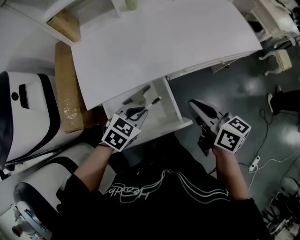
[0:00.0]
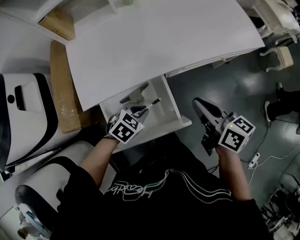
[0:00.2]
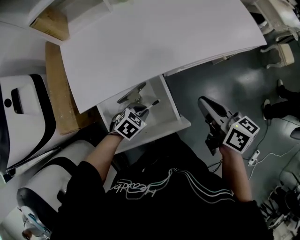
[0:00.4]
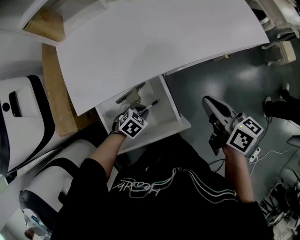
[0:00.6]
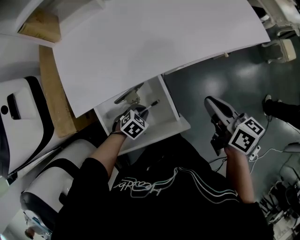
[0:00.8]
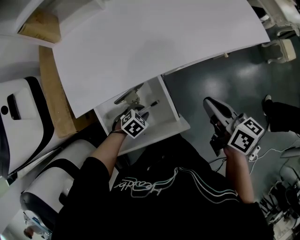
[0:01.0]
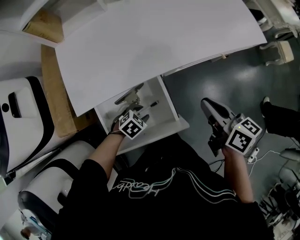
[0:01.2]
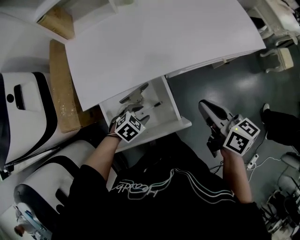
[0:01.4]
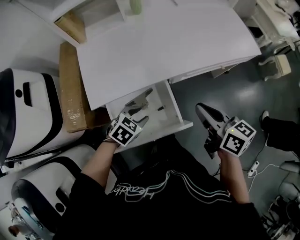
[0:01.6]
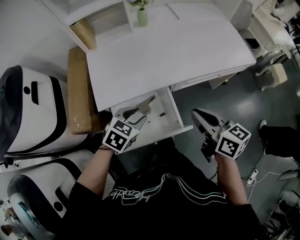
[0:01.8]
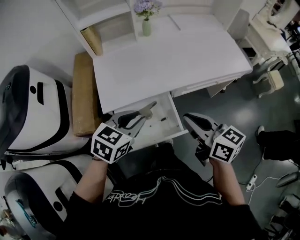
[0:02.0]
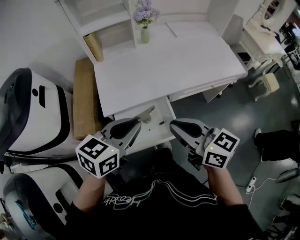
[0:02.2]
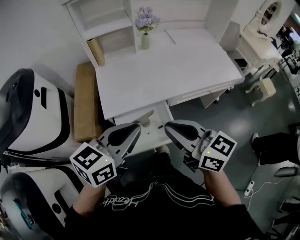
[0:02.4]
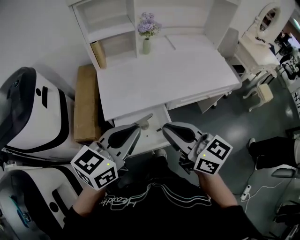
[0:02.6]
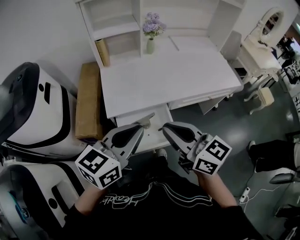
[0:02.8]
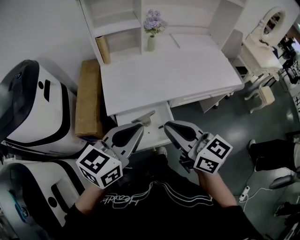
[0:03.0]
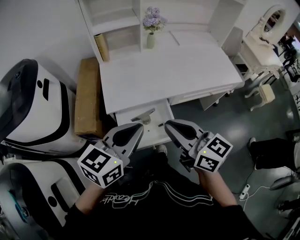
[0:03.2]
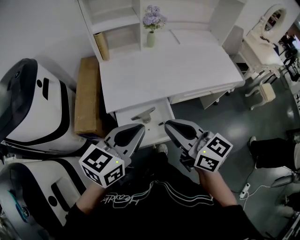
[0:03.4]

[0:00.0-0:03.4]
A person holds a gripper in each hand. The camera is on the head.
0:00.0 to 0:01.6: The left gripper reaches approximately 20 cm downward, then returns, and opens its fingers.
0:01.6 to 0:03.4: The left gripper goes some 35 cm upward, tilts its fingers some 40 degrees upward, and closes. The right gripper heads to the left, upward and backward, covering roughly 25 cm, and turns by some 20 degrees.

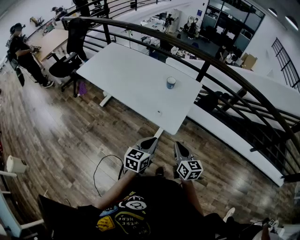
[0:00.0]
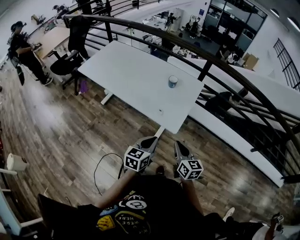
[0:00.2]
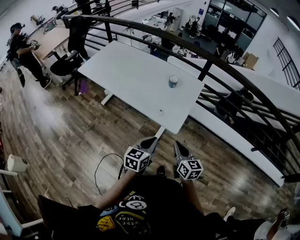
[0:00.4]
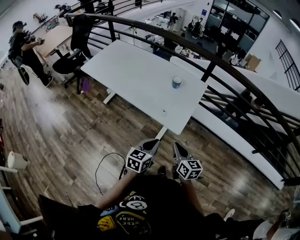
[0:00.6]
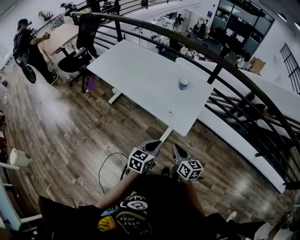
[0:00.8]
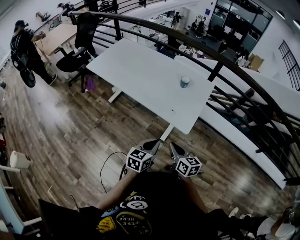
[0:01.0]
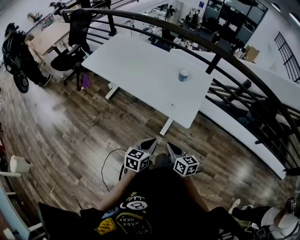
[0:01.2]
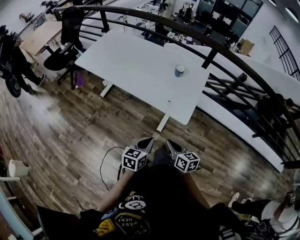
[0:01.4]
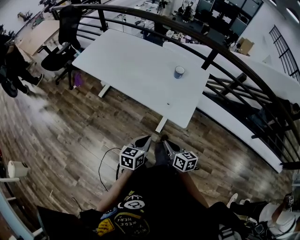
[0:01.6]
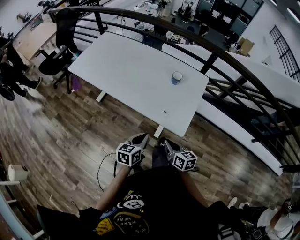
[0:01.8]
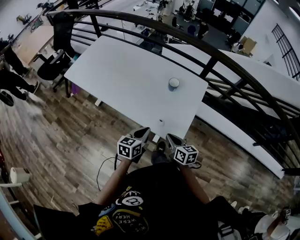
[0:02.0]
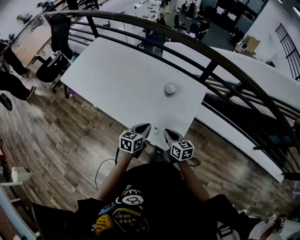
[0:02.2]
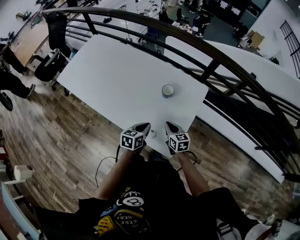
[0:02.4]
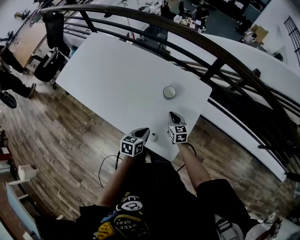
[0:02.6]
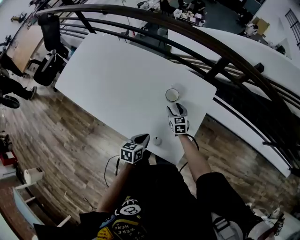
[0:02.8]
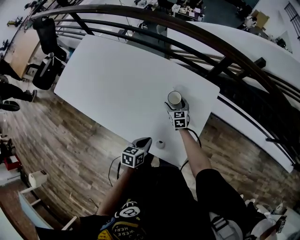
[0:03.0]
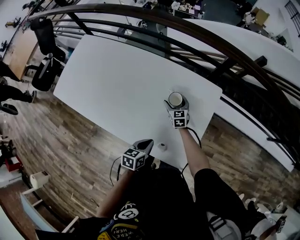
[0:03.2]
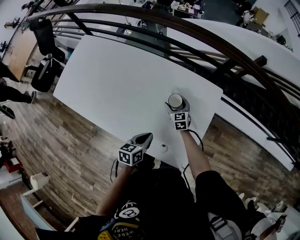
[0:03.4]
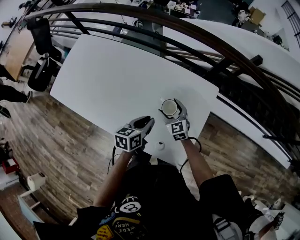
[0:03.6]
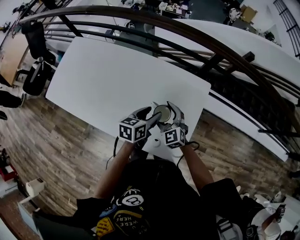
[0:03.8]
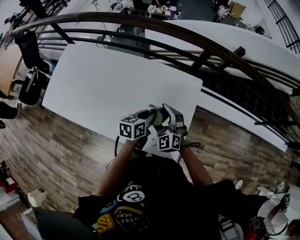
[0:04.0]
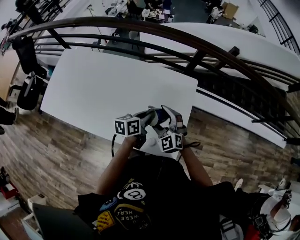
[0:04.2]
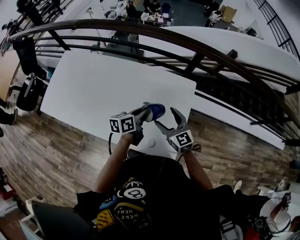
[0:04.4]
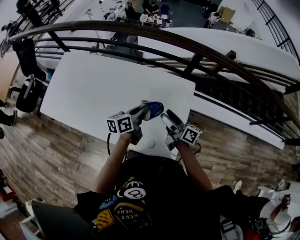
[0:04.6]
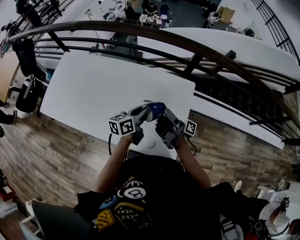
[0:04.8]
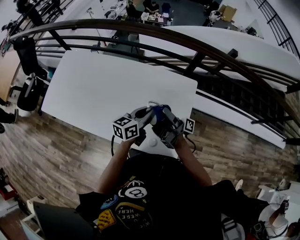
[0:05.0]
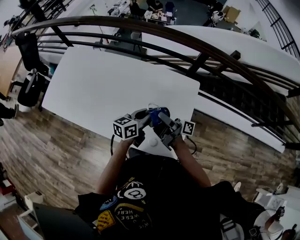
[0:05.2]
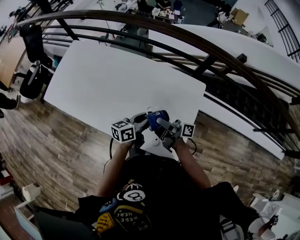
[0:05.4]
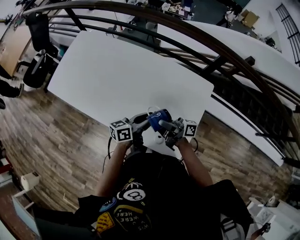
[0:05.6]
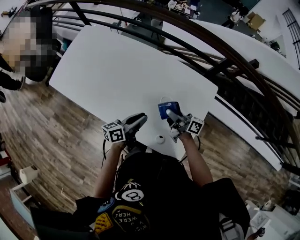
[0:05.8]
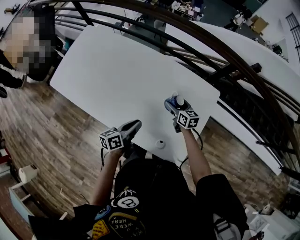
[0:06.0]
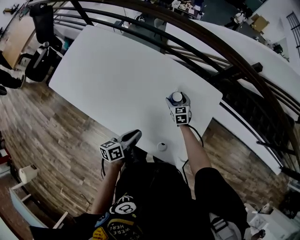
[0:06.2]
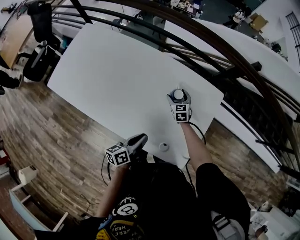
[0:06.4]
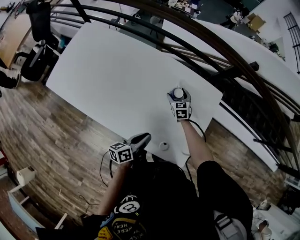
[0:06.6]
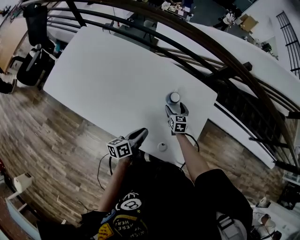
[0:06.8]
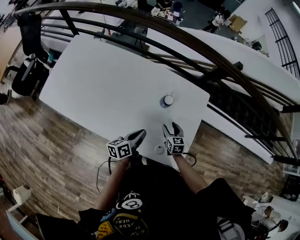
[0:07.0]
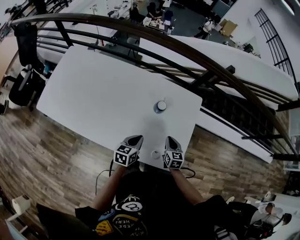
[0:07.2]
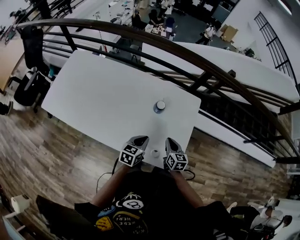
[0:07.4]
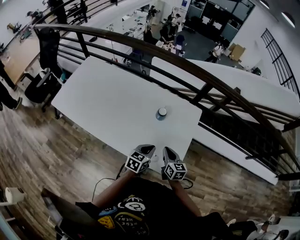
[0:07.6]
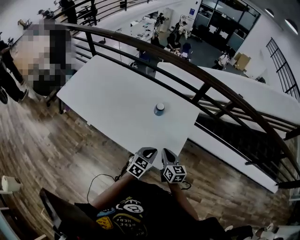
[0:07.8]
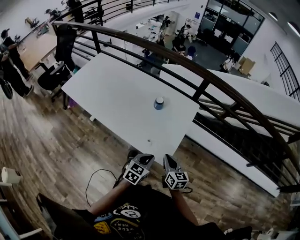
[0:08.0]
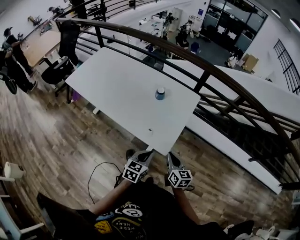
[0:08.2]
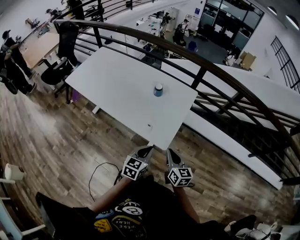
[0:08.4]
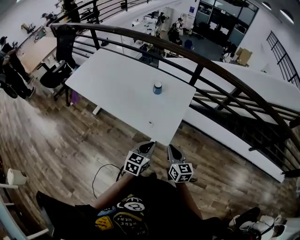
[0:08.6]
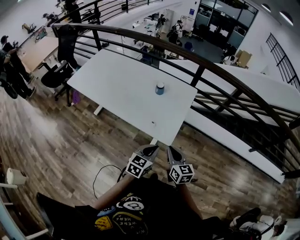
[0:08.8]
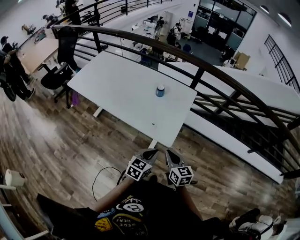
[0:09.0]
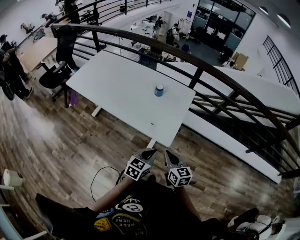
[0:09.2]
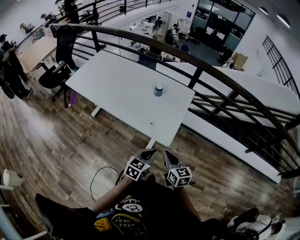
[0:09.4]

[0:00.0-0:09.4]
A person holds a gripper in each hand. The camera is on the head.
0:00.0 to 0:01.6: Both grippers travel together to the left and downward, roughly 15 cm.
0:01.6 to 0:03.2: The right gripper moves forward, some 60 cm, swivels about 30 degrees, and opens up. Meanwhile the left gripper goes roughly 30 cm forward.
0:03.2 to 0:04.8: The right gripper goes about 25 cm upward and backward, and rolls clockwise, seen from behind, by approximately 90 degrees; the left gripper is displaced forward and upward by about 20 cm, changes its angle by some 30 degrees, and opens and closes again.
0:04.8 to 0:06.2: The left gripper travels to the left, backward and downward by approximately 20 cm, and changes its angle by about 20 degrees; the right gripper heads downward and forward, covering roughly 25 cm, and twists about 90 degrees counterclockwise, seen from behind.
0:06.2 to 0:07.8: The left gripper heads to the right, covering about 20 cm, and twists some 50 degrees clockwise, seen from behind. The right gripper goes some 35 cm backward, upward and to the right, changes its angle by approximately 30 degrees, and closes its fingers.
0:07.8 to 0:09.4: Both grippers move backward, approximately 20 cm.

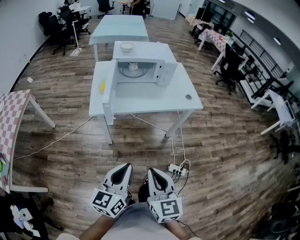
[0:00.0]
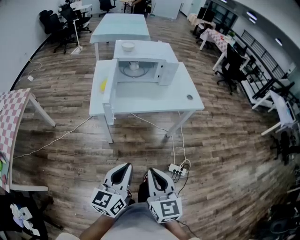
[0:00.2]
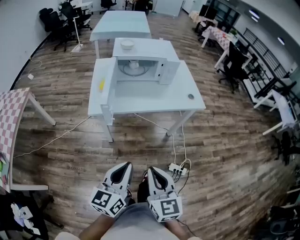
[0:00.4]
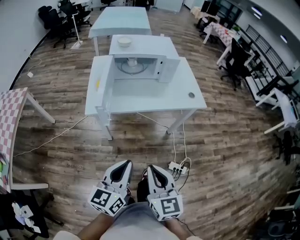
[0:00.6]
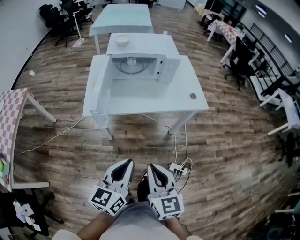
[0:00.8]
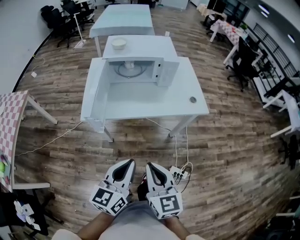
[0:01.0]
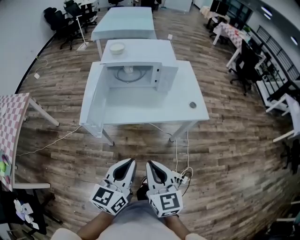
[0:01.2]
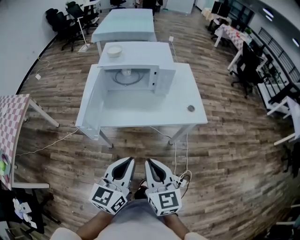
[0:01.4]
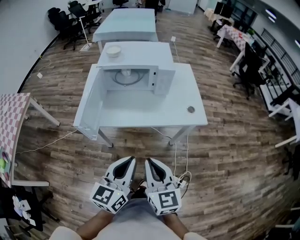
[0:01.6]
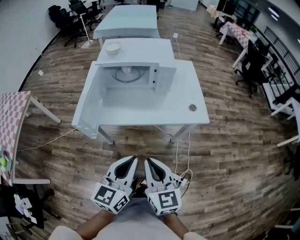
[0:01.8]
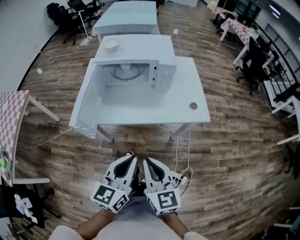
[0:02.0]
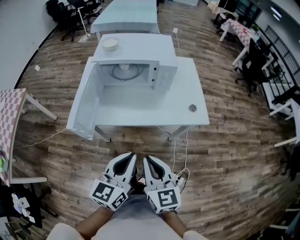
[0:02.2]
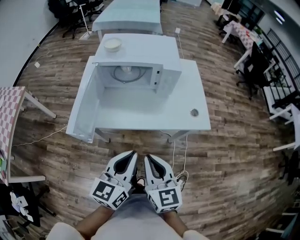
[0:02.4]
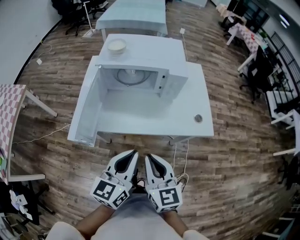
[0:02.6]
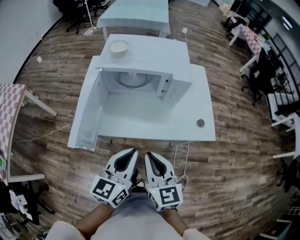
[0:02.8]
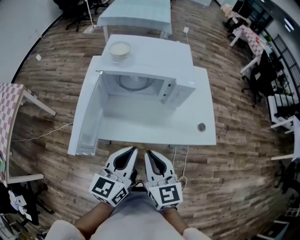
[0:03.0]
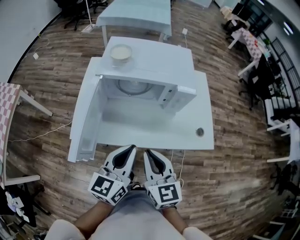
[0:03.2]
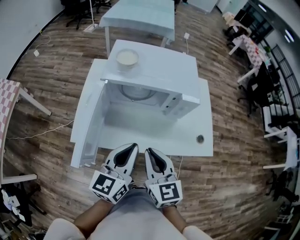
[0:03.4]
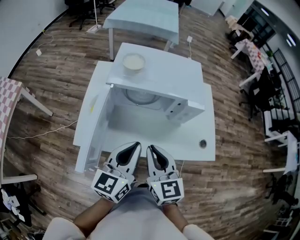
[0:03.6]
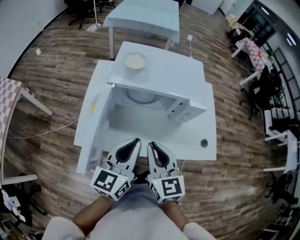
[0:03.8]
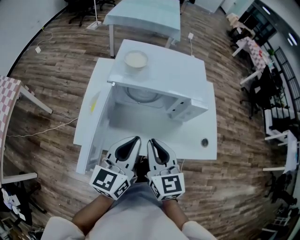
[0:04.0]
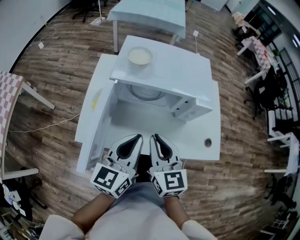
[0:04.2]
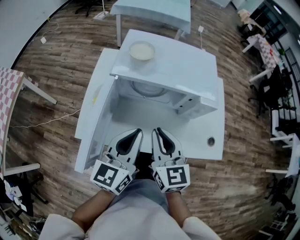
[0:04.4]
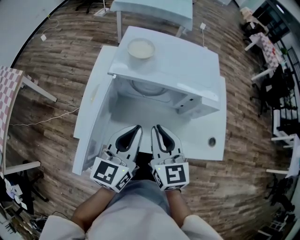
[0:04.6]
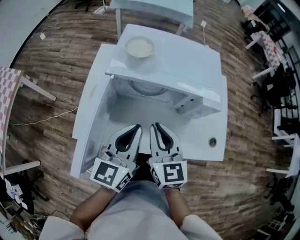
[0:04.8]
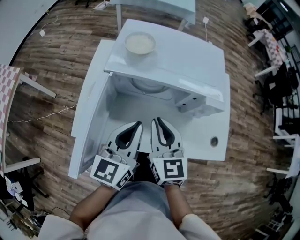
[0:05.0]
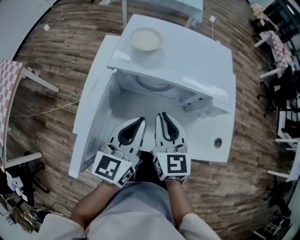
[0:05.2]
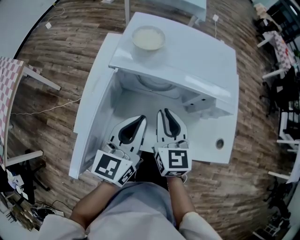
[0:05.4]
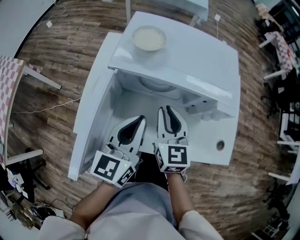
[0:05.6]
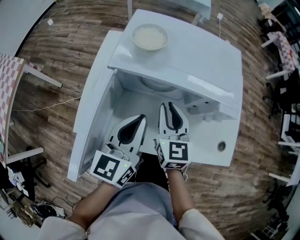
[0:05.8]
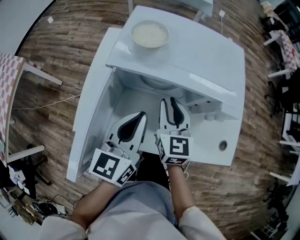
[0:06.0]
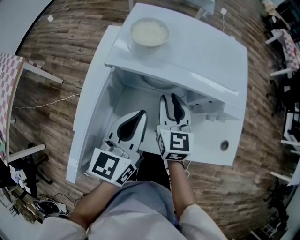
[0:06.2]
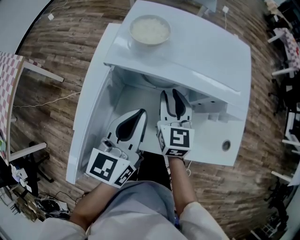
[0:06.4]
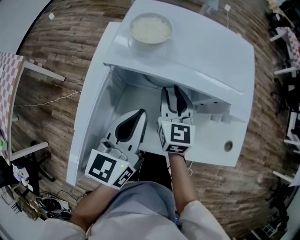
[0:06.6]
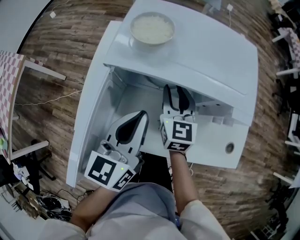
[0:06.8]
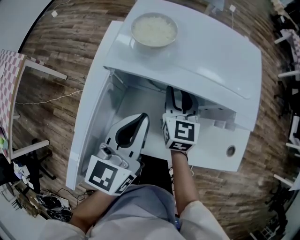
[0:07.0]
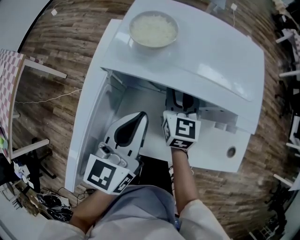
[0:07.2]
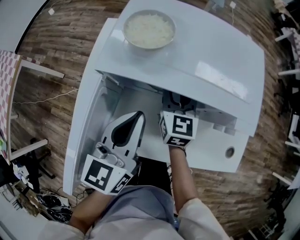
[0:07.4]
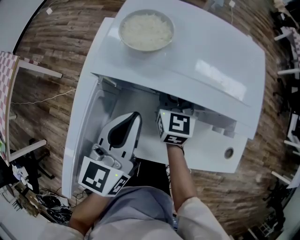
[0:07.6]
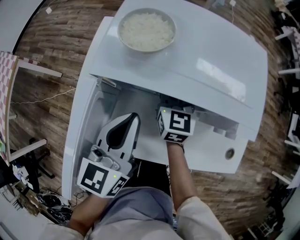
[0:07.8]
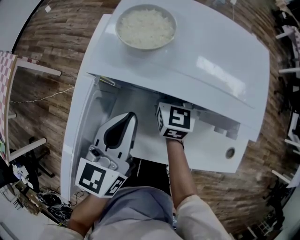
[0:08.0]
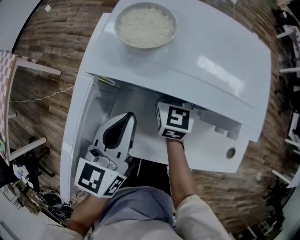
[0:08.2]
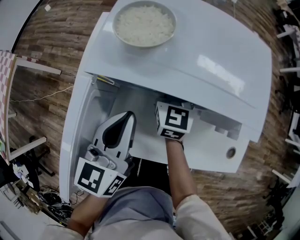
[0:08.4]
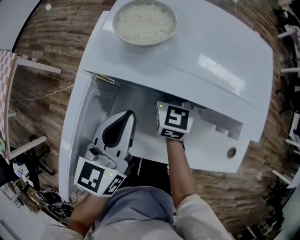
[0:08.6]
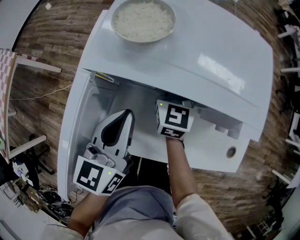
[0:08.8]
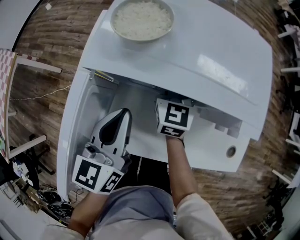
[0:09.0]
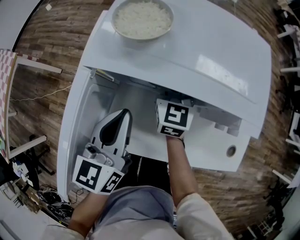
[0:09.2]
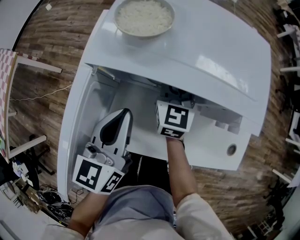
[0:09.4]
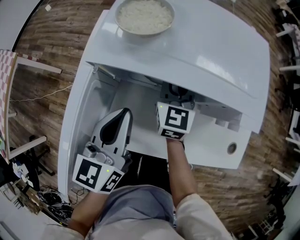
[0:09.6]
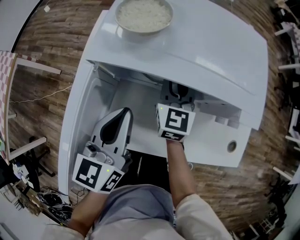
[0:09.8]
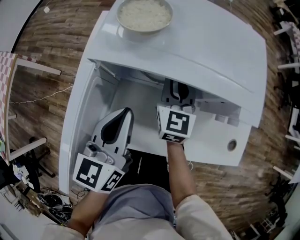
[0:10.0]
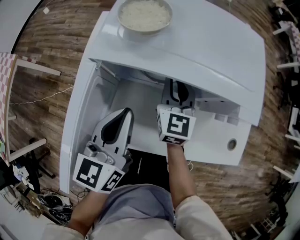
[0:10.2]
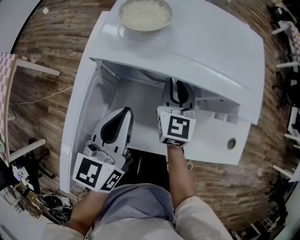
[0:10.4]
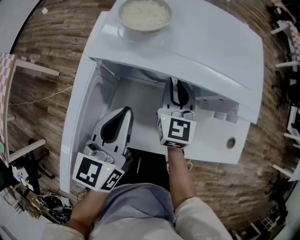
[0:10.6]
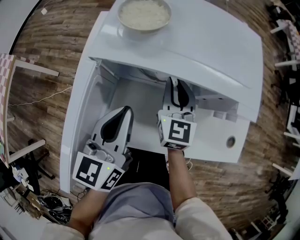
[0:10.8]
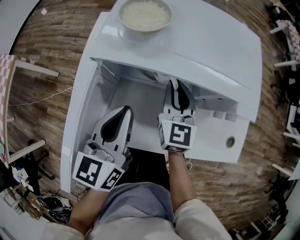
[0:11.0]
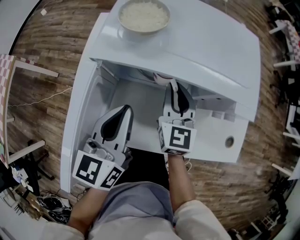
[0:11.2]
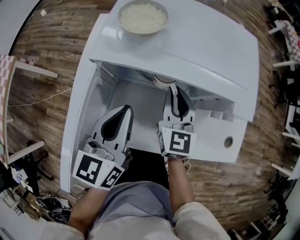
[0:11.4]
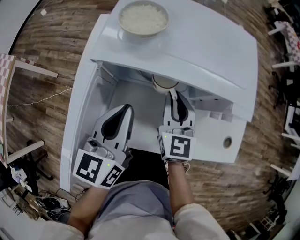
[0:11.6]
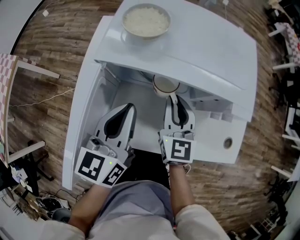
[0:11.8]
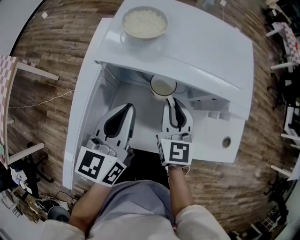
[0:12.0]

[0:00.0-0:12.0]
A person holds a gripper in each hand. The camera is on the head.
0:00.0 to 0:01.6: The grippers both shift forward and to the right by about 25 cm.
0:01.6 to 0:03.0: Both grippers travel together forward, about 20 cm.
0:03.0 to 0:04.4: The right gripper goes approximately 15 cm forward; the left gripper travels forward and to the left by about 15 cm.
0:04.4 to 0:06.0: The left gripper travels forward by some 10 cm. Meanwhile the right gripper heads forward and downward, covering approximately 15 cm.
0:06.0 to 0:07.6: The right gripper shifts some 10 cm forward and downward, while the left gripper changes place by some 5 cm.
0:07.6 to 0:09.0: The grippers make only small movements.
0:09.0 to 0:10.4: The right gripper goes approximately 5 cm backward.
0:10.4 to 0:12.0: The right gripper goes approximately 5 cm backward.
